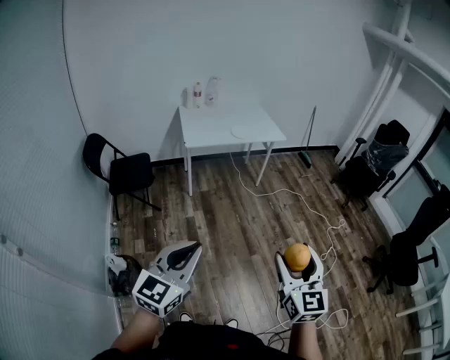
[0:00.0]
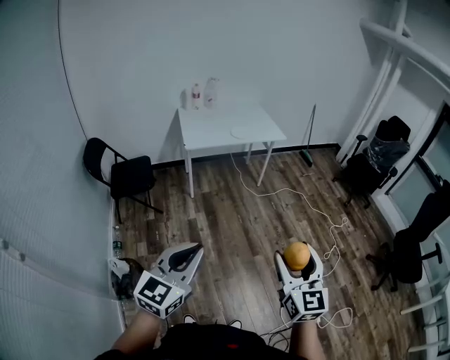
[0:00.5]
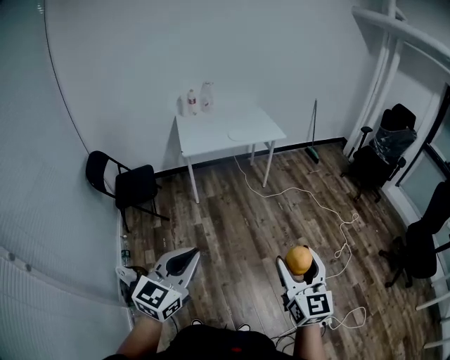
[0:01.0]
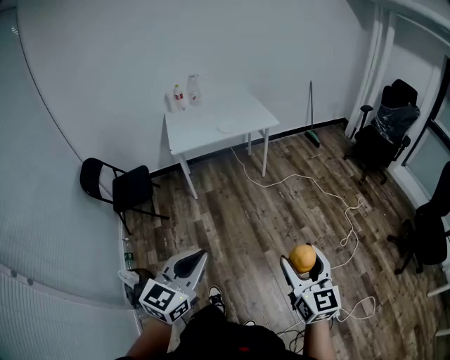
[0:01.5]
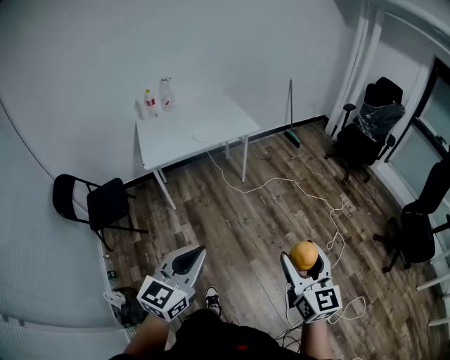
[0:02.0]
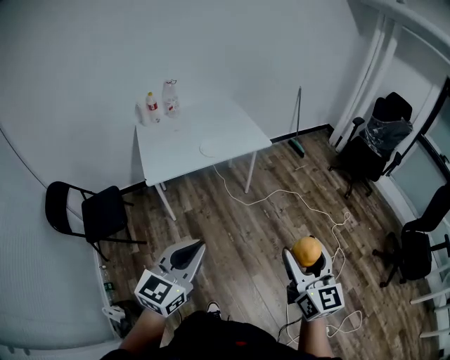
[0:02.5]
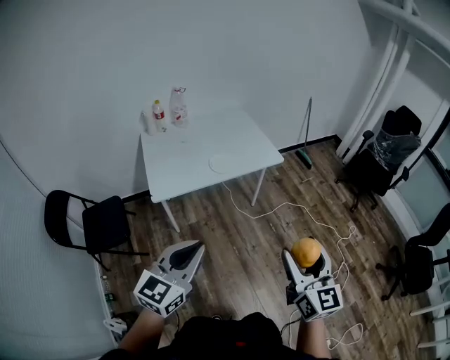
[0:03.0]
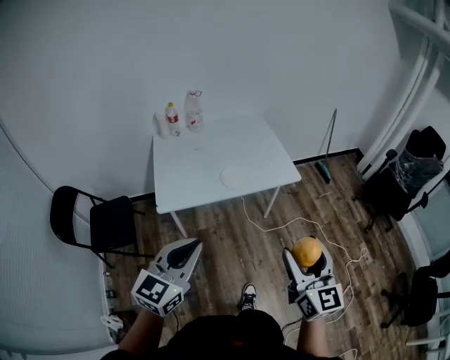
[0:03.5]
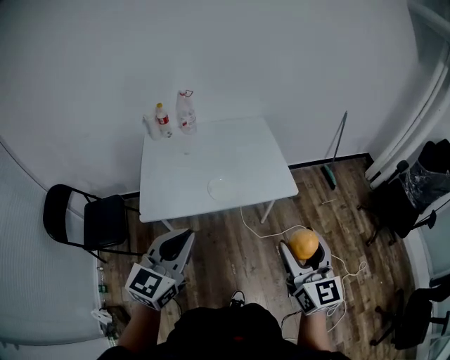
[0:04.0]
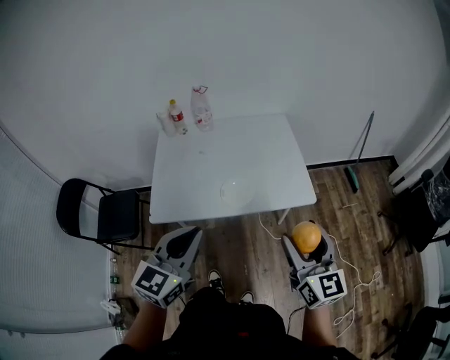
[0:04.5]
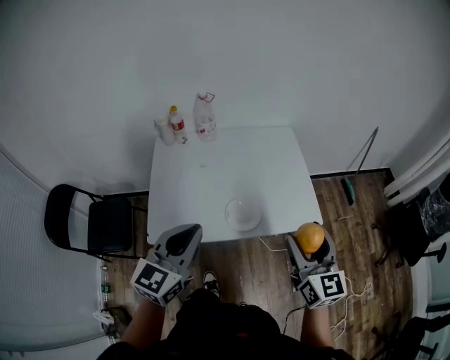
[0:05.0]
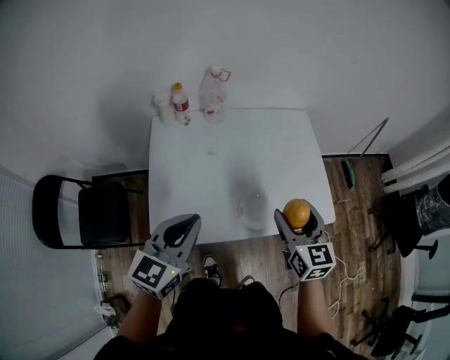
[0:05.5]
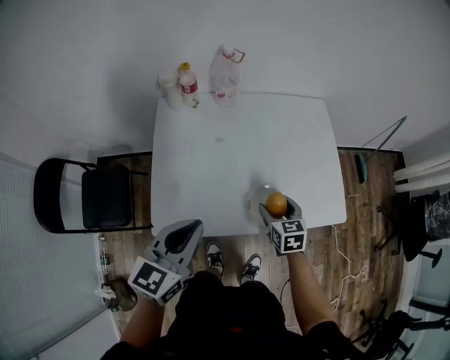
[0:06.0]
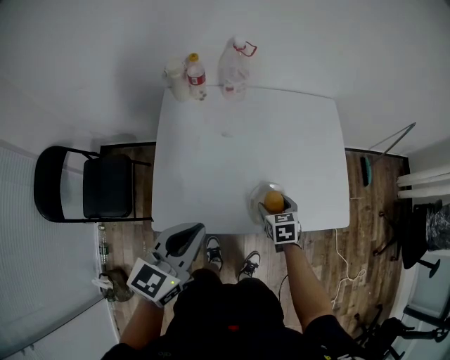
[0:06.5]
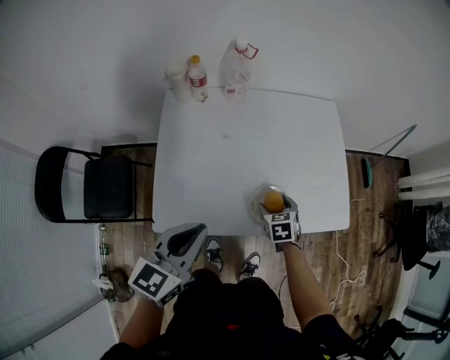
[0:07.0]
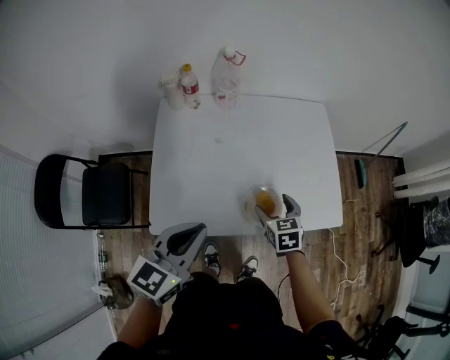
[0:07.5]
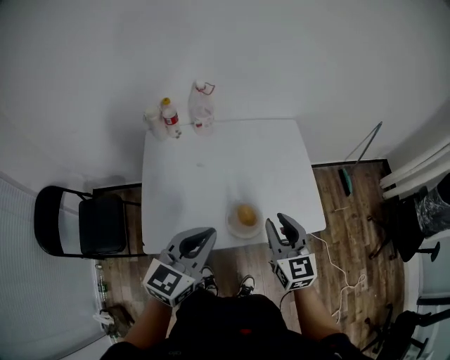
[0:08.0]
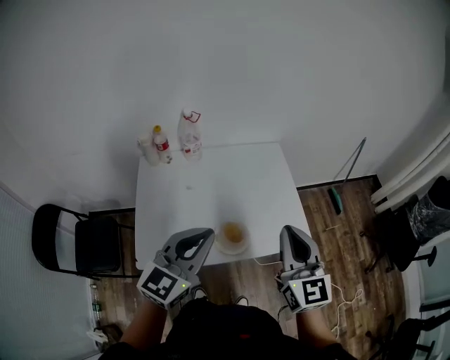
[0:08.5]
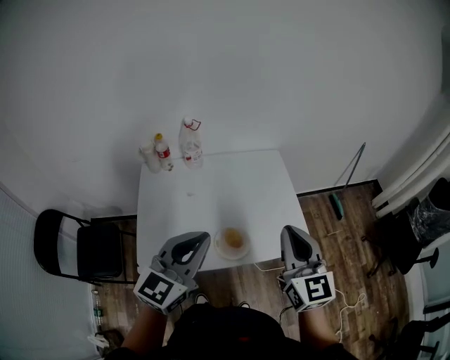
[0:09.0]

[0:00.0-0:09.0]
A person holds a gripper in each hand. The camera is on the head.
0:00.0 to 0:02.0: Both grippers travel together forward and to the right, about 30 cm.
0:02.0 to 0:04.5: Both grippers are carried forward, some 70 cm. The left gripper swivels some 20 degrees, while the right gripper changes its angle by some 20 degrees.
0:04.5 to 0:07.0: The right gripper moves downward, forward and to the left, roughly 50 cm, and tilts its fingers roughly 60 degrees downward, while the left gripper travels forward, to the left and downward by some 30 cm.
0:07.0 to 0:09.0: The left gripper travels upward and to the right by about 20 cm, and turns by about 20 degrees. Meanwhile the right gripper is displaced upward by some 40 cm, tips its fingers upward by approximately 50 degrees, and closes its fingers.

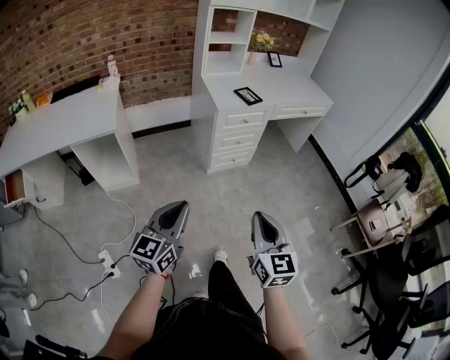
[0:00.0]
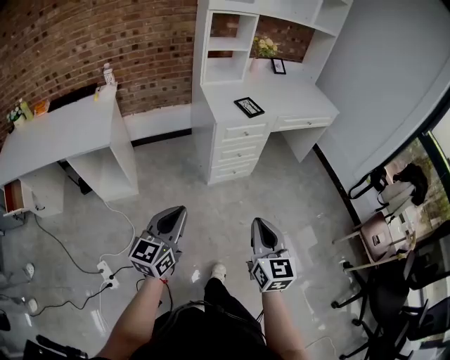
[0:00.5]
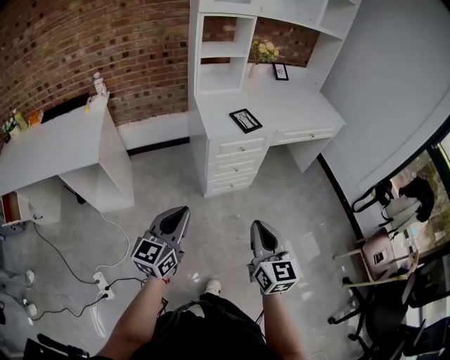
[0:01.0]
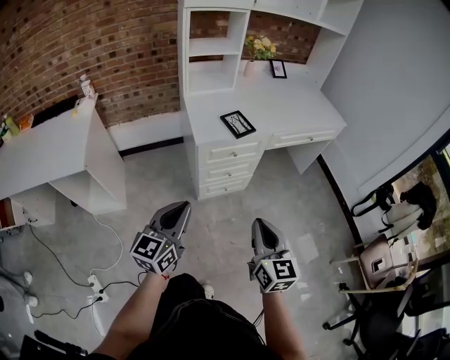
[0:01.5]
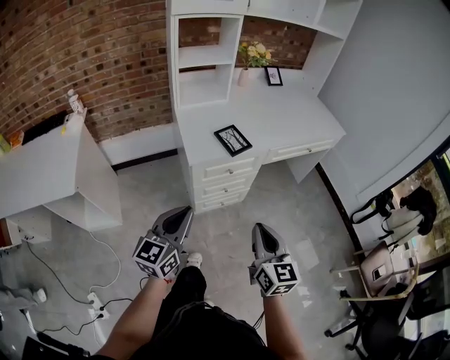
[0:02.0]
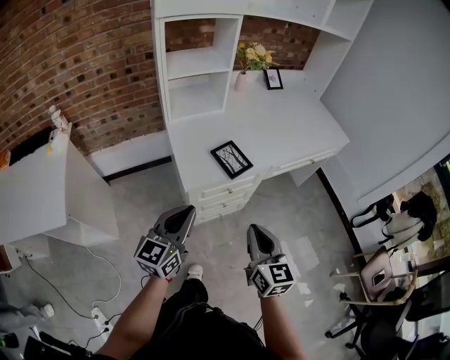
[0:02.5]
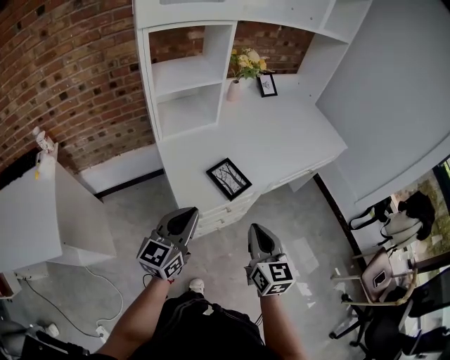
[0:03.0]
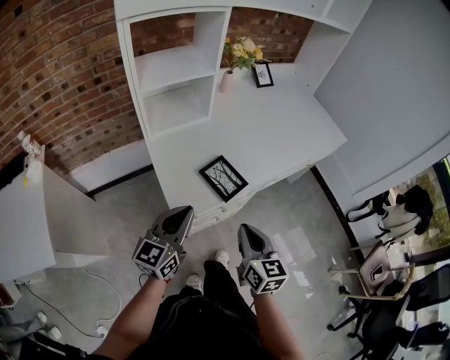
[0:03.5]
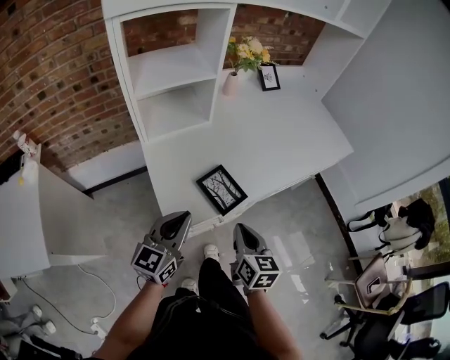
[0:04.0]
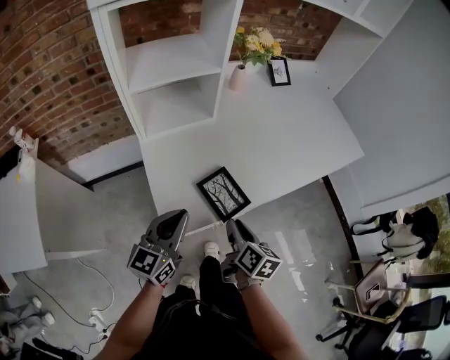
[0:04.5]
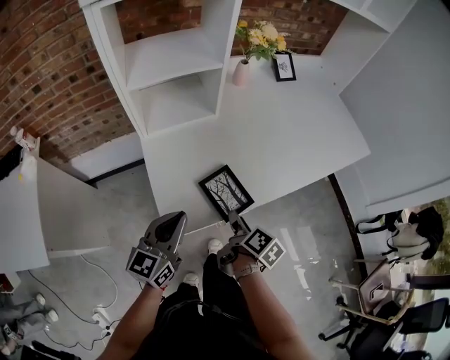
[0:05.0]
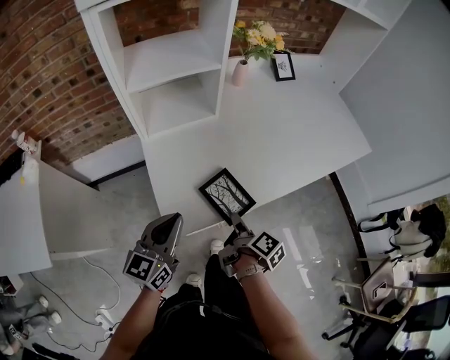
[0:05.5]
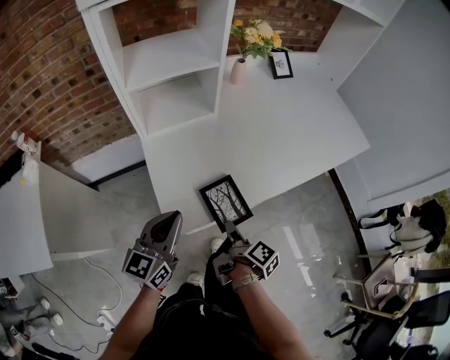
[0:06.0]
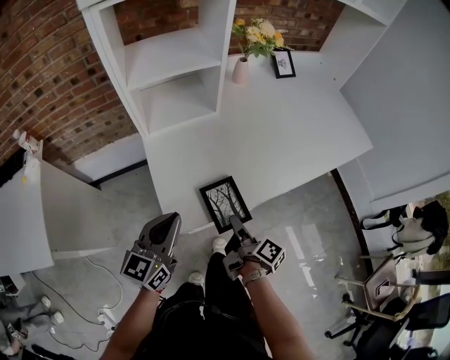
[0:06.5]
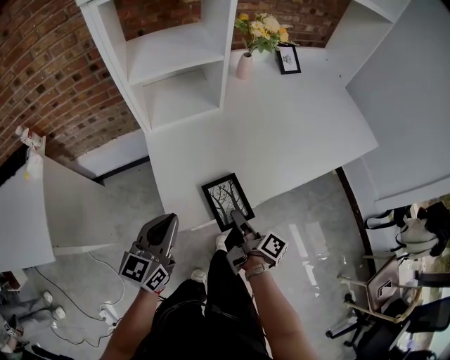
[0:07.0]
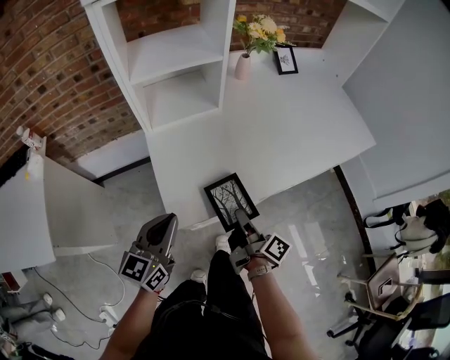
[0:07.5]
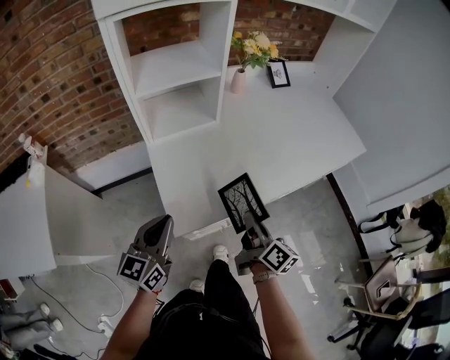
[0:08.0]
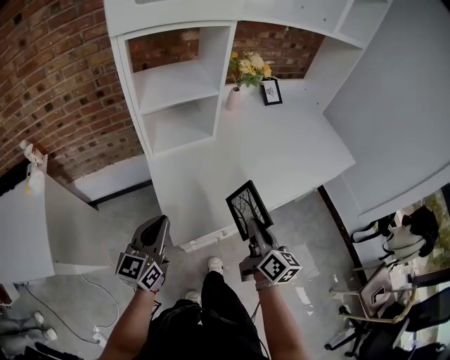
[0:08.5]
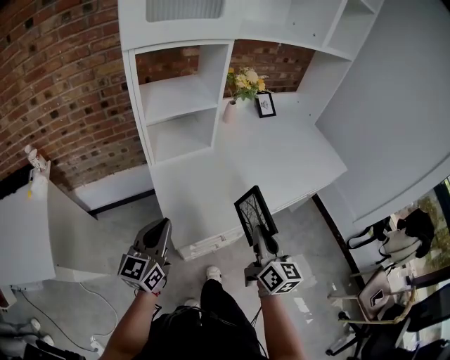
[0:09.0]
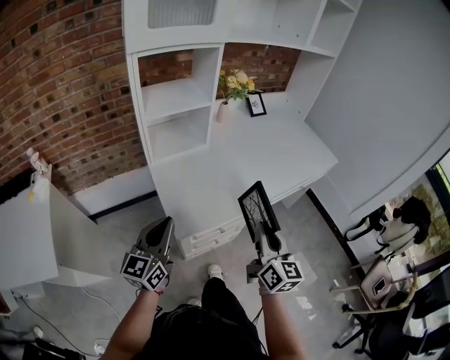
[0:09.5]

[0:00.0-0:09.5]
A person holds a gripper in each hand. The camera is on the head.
0:00.0 to 0:02.0: The two grippers go approximately 35 cm forward.
0:02.0 to 0:04.0: The two grippers go approximately 30 cm forward. The right gripper changes its angle by about 20 degrees.
0:04.0 to 0:05.5: The right gripper is displaced downward and forward by approximately 10 cm, rotates around the line of its fingers by roughly 60 degrees, clockwise from behind, and opens, then closes once more.
0:05.5 to 0:07.5: The right gripper changes its angle by approximately 20 degrees, and opens, then closes again.
0:07.5 to 0:09.5: The right gripper heads upward, covering some 20 cm, and twists approximately 60 degrees counterclockwise, seen from behind. The left gripper travels upward by approximately 10 cm.

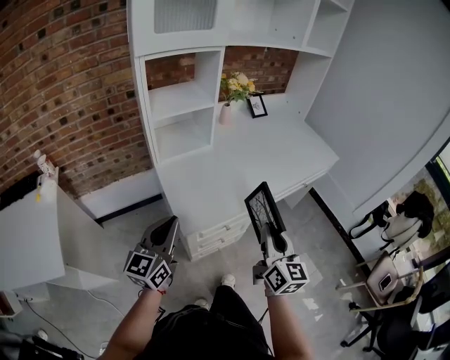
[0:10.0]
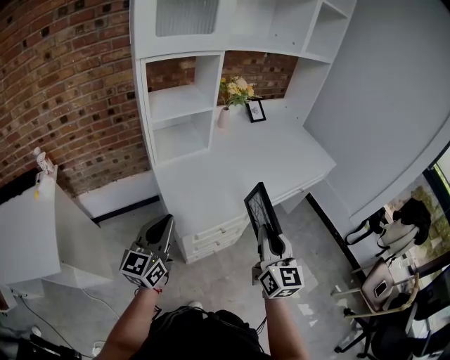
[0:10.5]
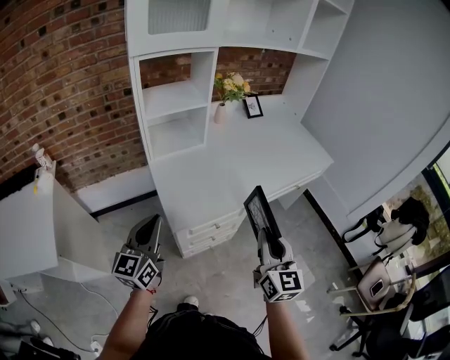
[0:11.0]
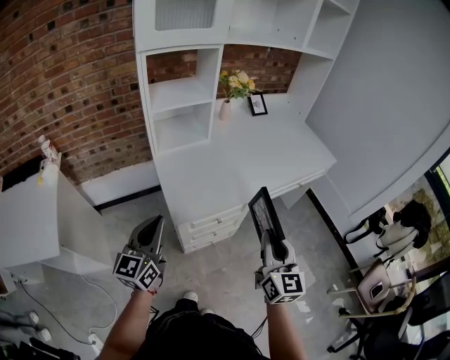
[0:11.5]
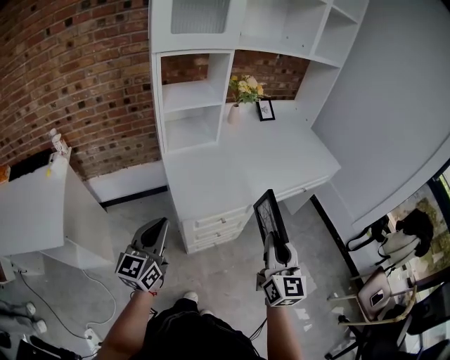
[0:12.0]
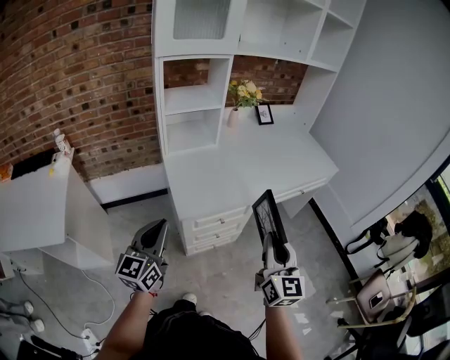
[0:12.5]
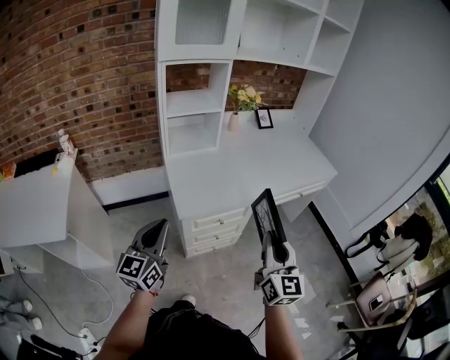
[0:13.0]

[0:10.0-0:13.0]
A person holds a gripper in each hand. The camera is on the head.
0:10.0 to 0:11.5: The right gripper ends up about 5 cm from where it was.
0:11.5 to 0:13.0: The right gripper ends up approximately 5 cm from where it was. Meanwhile the left gripper goes approximately 5 cm backward.

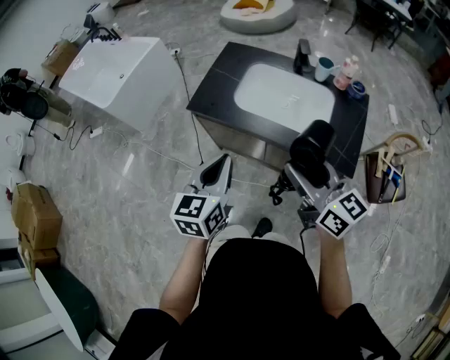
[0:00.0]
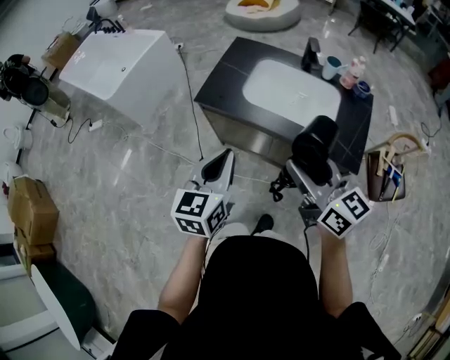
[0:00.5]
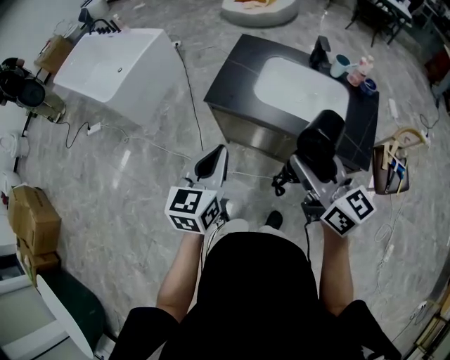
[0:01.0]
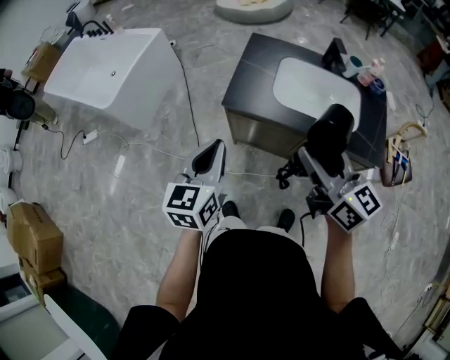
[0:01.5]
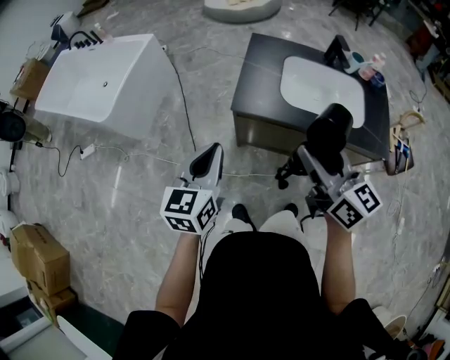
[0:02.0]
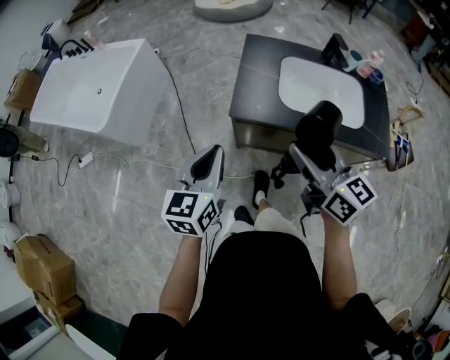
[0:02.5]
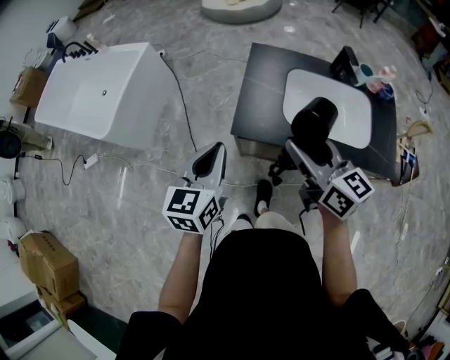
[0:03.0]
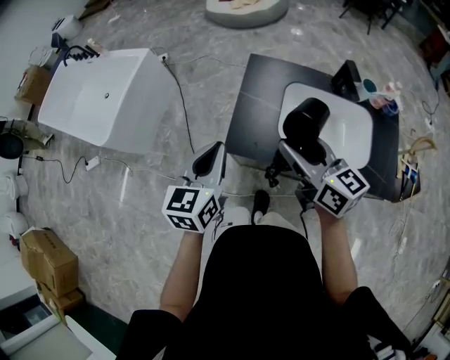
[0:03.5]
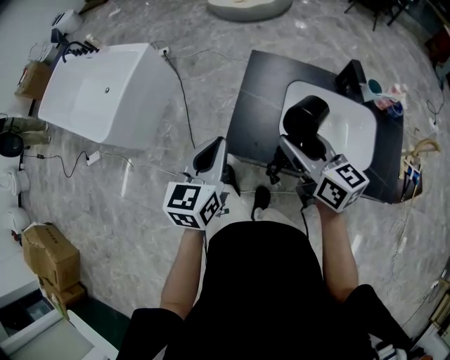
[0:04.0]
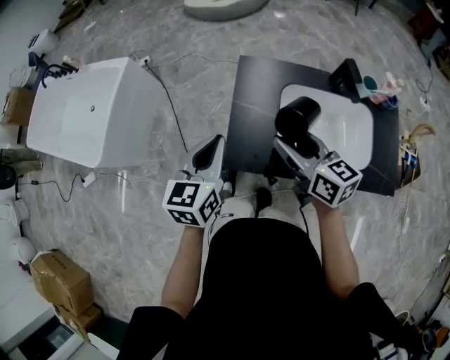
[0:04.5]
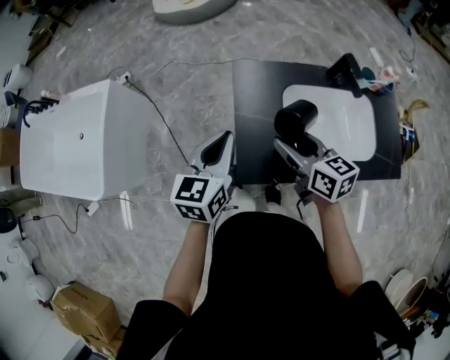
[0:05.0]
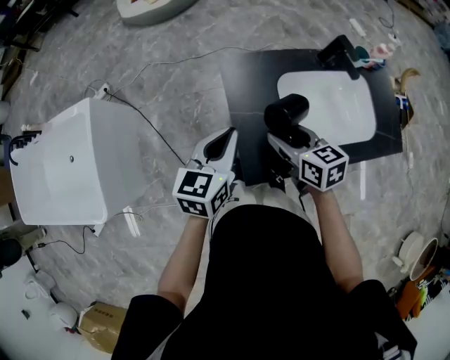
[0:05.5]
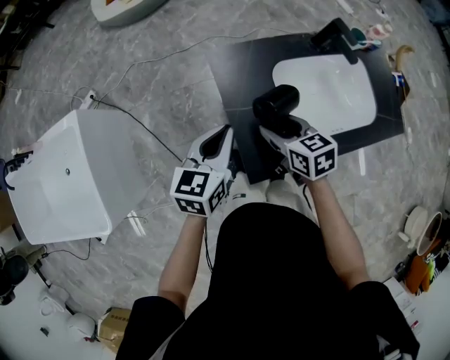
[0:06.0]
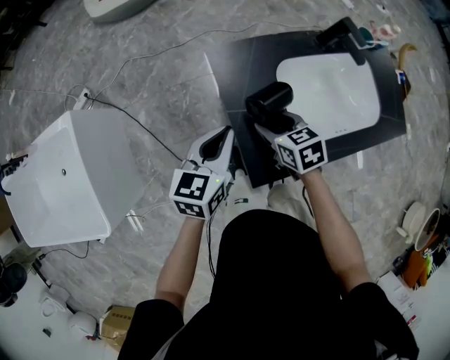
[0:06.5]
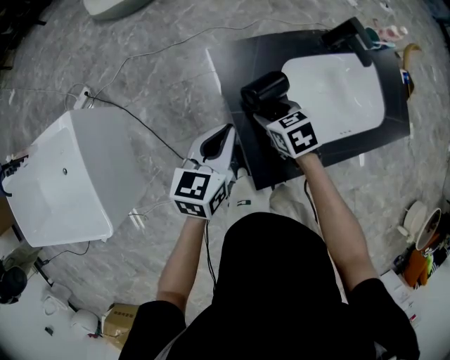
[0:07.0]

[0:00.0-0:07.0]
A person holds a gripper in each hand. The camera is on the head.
0:00.0 to 0:02.0: Both grippers travel together to the left, approximately 30 cm.
0:02.0 to 0:03.5: The right gripper goes about 20 cm forward, while the left gripper is displaced forward and to the right by roughly 20 cm.
0:03.5 to 0:05.0: The left gripper travels forward by roughly 20 cm, while the right gripper is displaced forward and downward by roughly 15 cm, and changes its angle by approximately 20 degrees.
0:05.0 to 0:07.0: The right gripper travels downward and forward by roughly 20 cm, and tilts its fingers some 30 degrees downward. The left gripper goes about 15 cm downward and forward, and swivels about 20 degrees.
